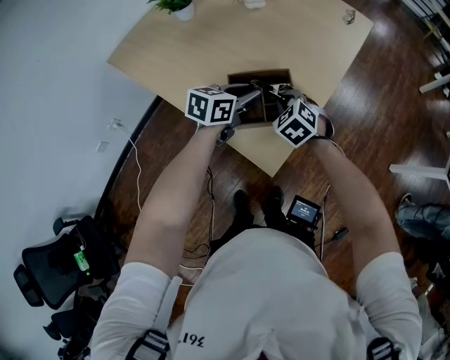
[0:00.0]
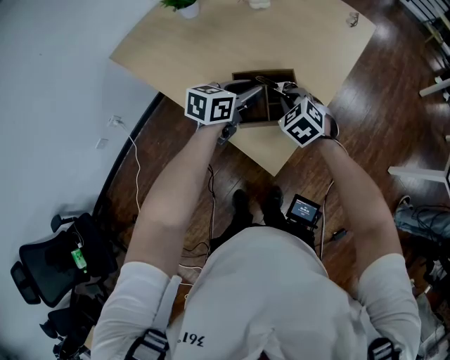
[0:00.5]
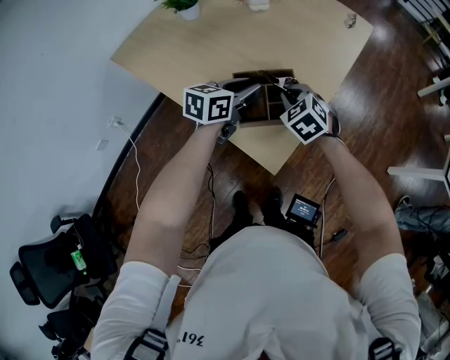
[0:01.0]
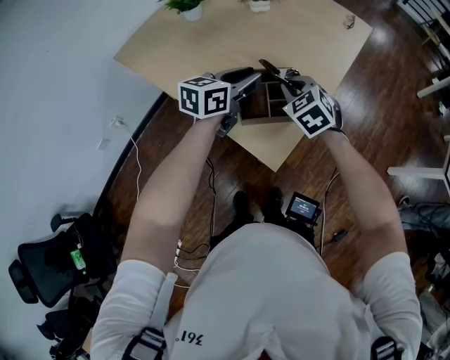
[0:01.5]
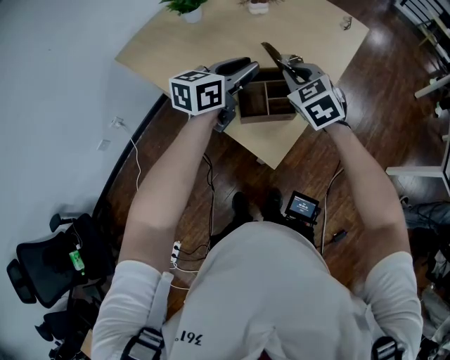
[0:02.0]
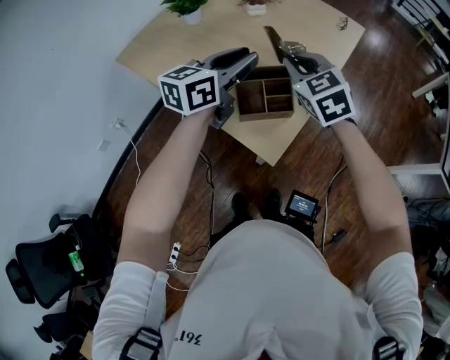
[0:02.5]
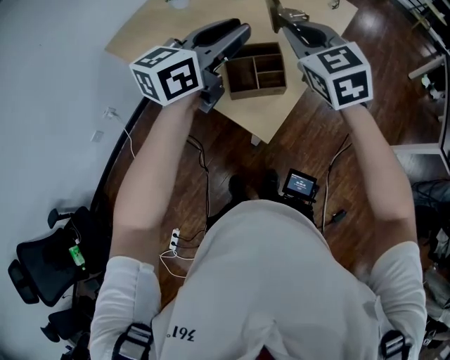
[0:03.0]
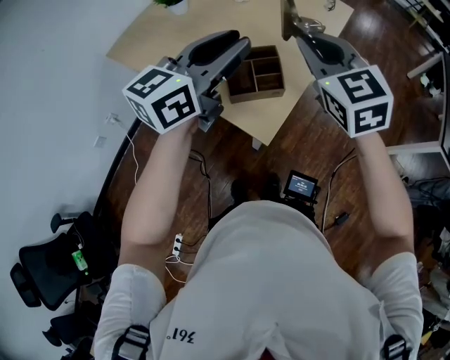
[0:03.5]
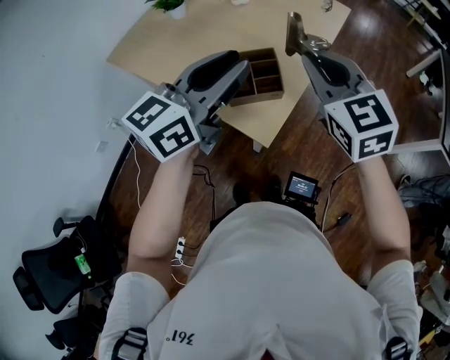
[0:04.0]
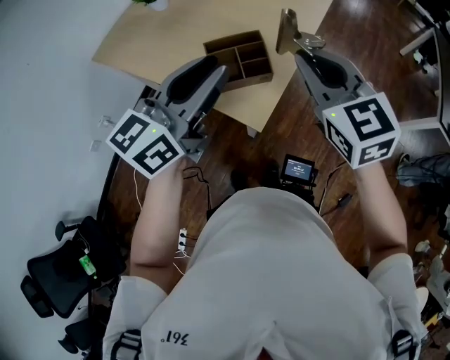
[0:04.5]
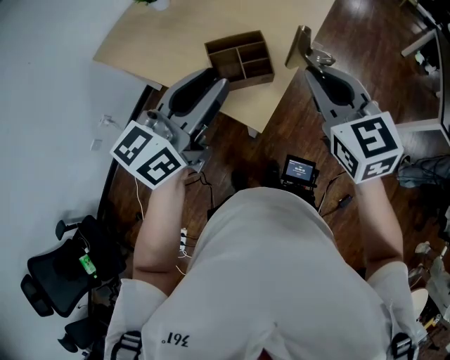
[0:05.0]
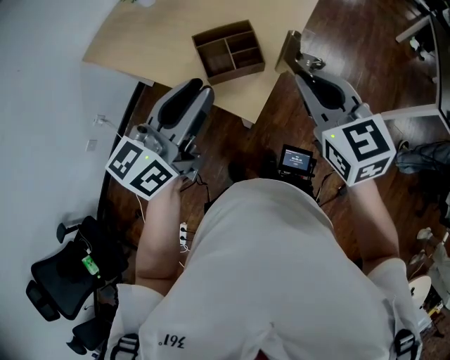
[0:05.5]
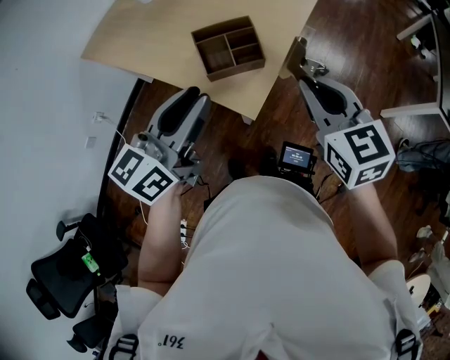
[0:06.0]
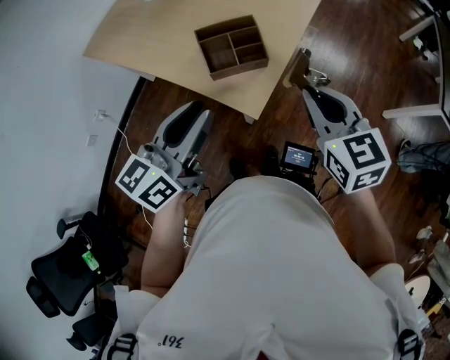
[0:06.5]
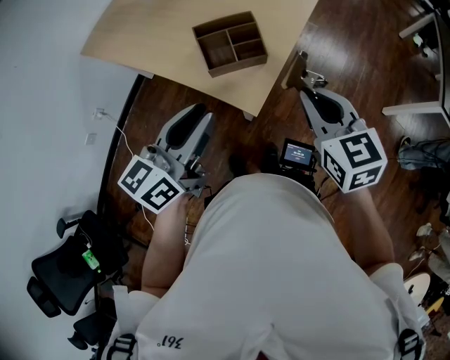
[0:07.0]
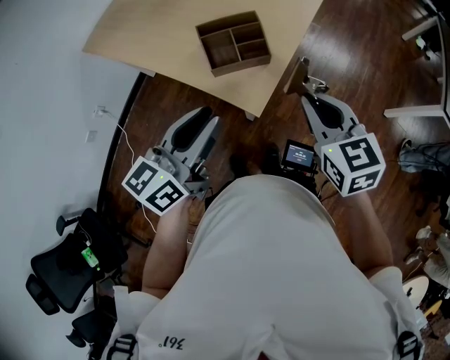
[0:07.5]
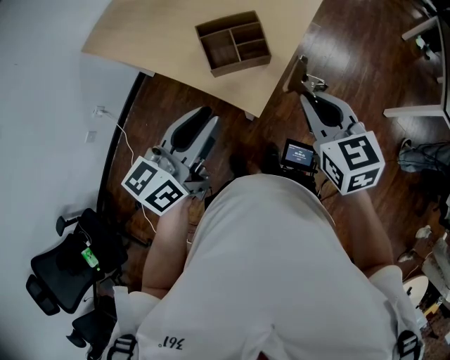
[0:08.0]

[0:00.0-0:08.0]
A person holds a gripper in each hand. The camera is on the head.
0:00.0 to 0:02.0: Both grippers move upward, roughly 15 cm.
0:02.0 to 0:04.0: The right gripper goes about 20 cm upward, backward and to the right, while the left gripper moves backward and upward, about 20 cm.
0:04.0 to 0:06.0: The right gripper goes about 10 cm backward, downward and to the right. Meanwhile the left gripper moves backward and downward, some 10 cm.
0:06.0 to 0:08.0: The right gripper ends up some 5 cm from where it was. Meanwhile the left gripper ends up roughly 5 cm from where it was.

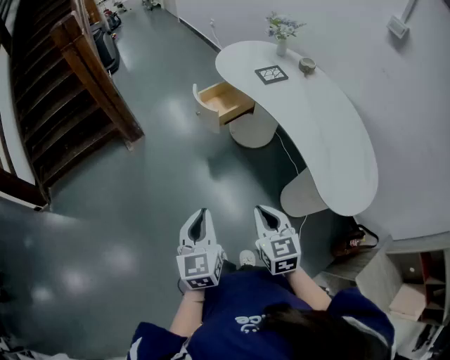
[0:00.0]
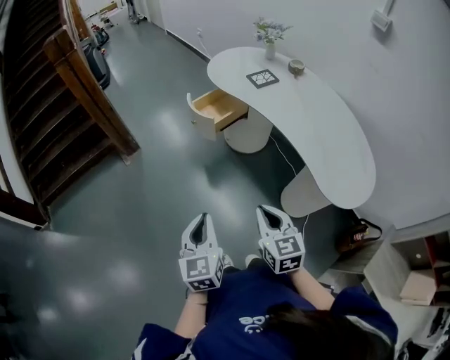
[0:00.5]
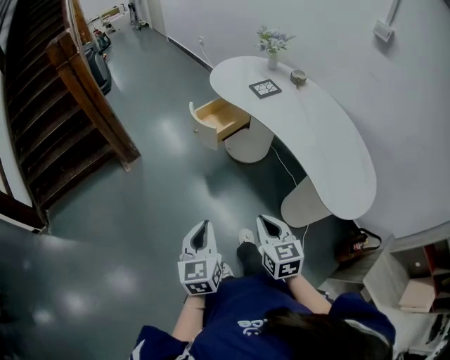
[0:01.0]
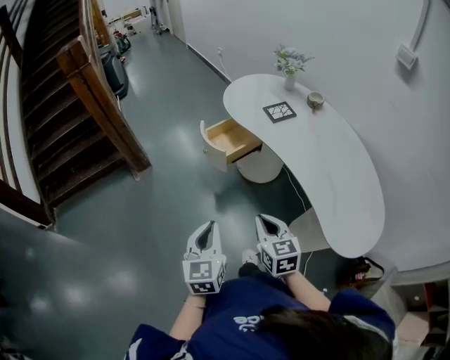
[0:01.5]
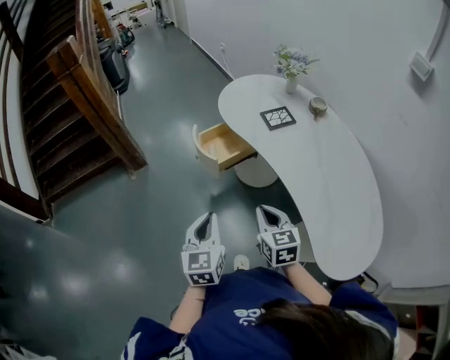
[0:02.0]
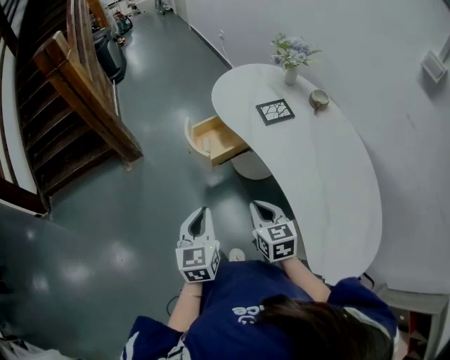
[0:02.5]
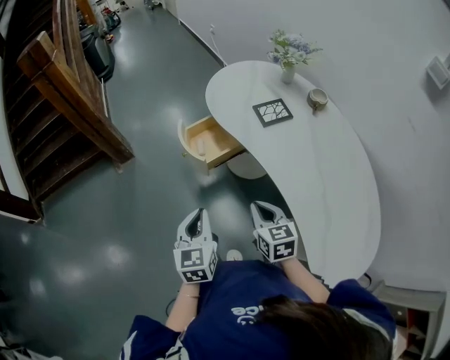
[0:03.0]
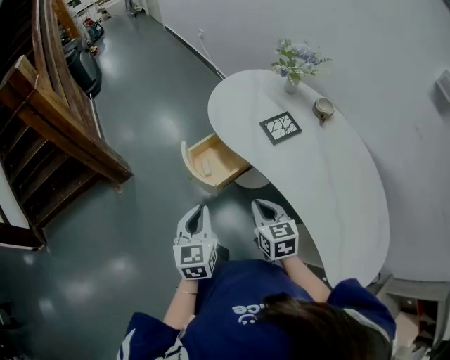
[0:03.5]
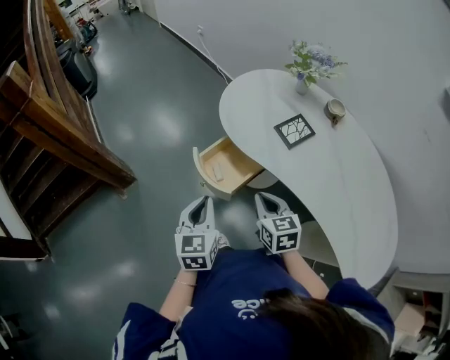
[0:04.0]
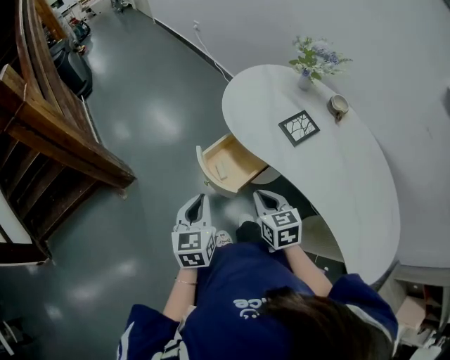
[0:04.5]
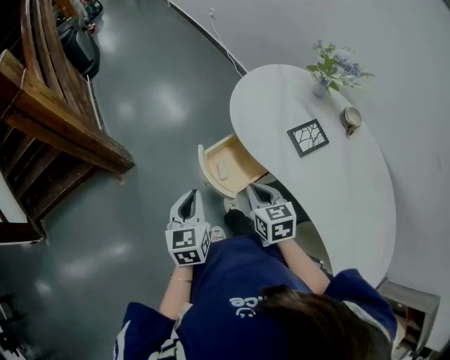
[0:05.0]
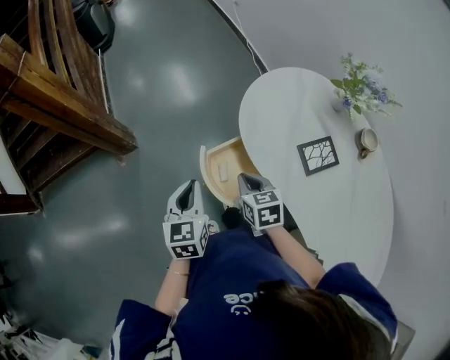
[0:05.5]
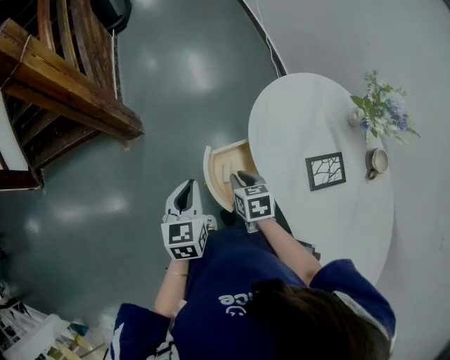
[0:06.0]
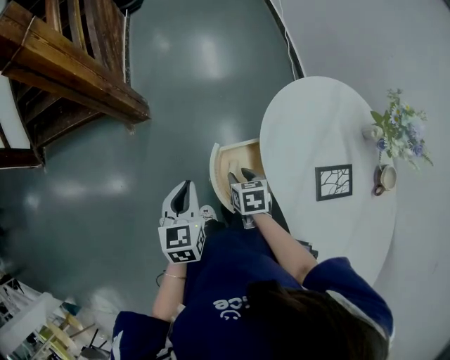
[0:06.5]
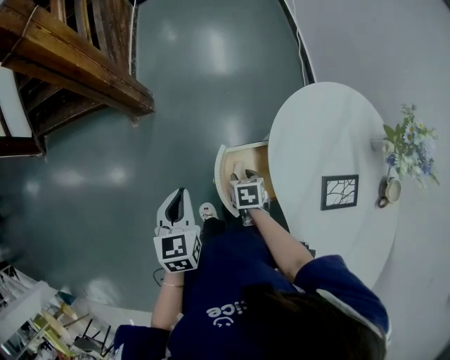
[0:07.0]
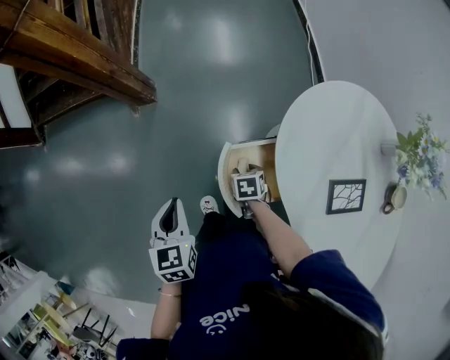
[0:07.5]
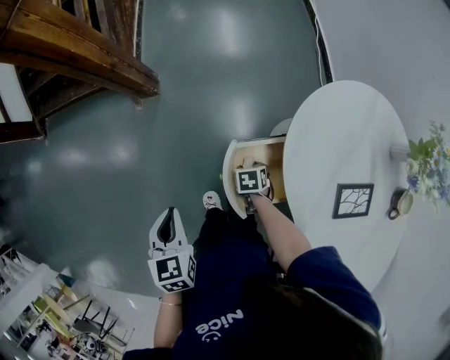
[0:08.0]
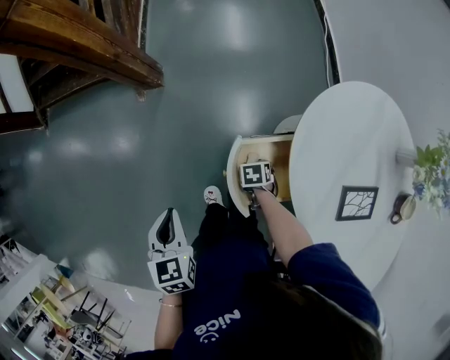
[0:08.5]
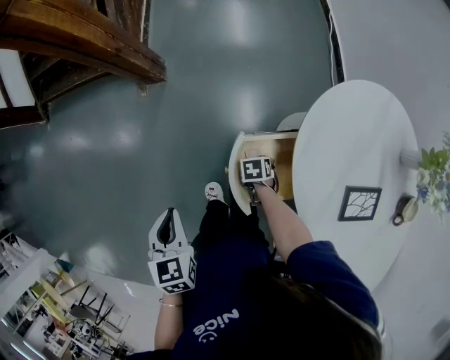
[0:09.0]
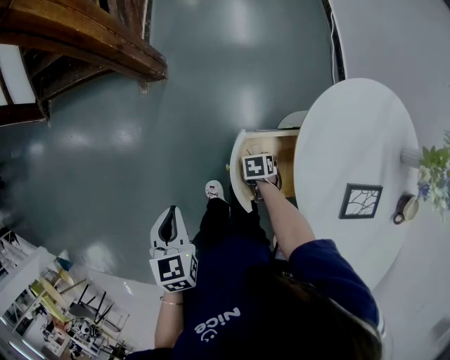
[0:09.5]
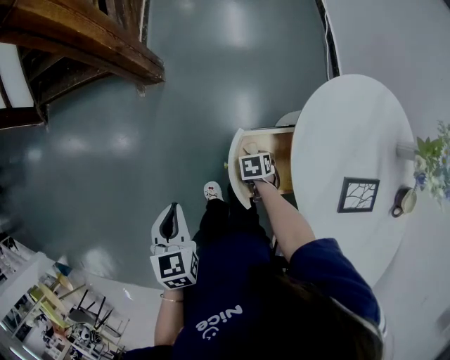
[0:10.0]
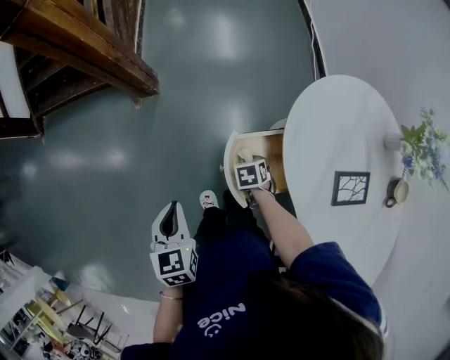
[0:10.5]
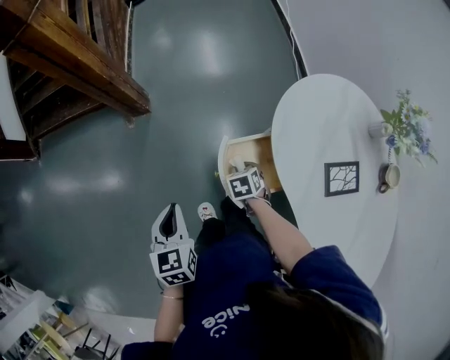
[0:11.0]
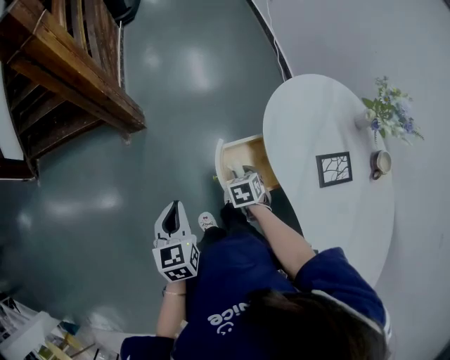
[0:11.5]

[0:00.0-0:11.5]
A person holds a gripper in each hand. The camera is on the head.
0:00.0 to 0:02.0: The two grippers go about 20 cm forward.
0:02.0 to 0:04.0: Both grippers move forward, roughly 25 cm.
0:04.0 to 0:06.0: The left gripper moves approximately 15 cm, and changes its angle by about 30 degrees; the right gripper ends up roughly 25 cm from where it was, and swivels some 30 degrees.
0:06.0 to 0:07.5: The right gripper travels downward by roughly 15 cm, and opens, while the left gripper shifts about 10 cm to the left.
0:07.5 to 0:09.5: The right gripper shifts roughly 5 cm downward. Meanwhile the left gripper ends up about 5 cm from where it was.
0:09.5 to 0:11.5: The right gripper heads upward, covering some 15 cm, and changes its angle by about 20 degrees.

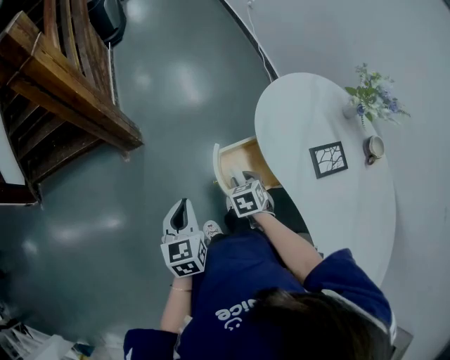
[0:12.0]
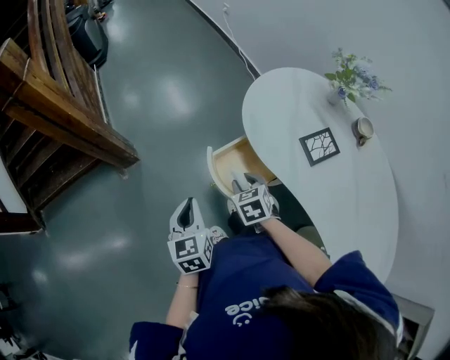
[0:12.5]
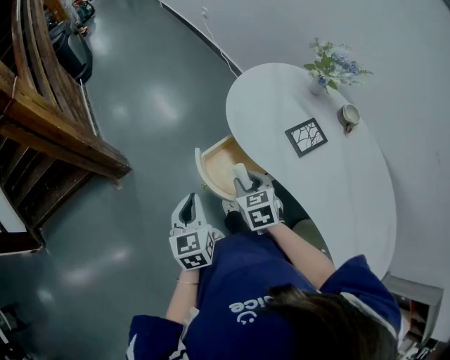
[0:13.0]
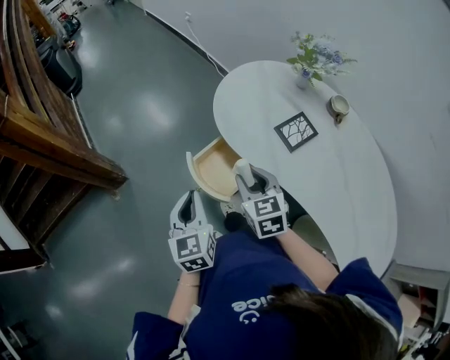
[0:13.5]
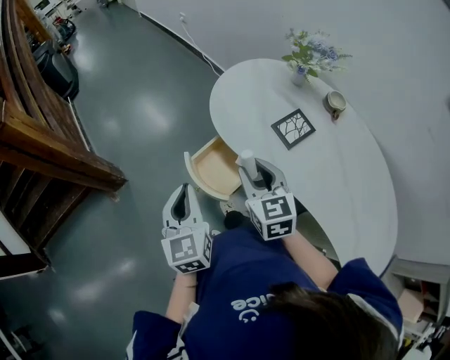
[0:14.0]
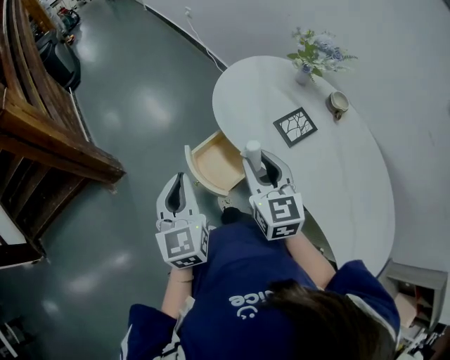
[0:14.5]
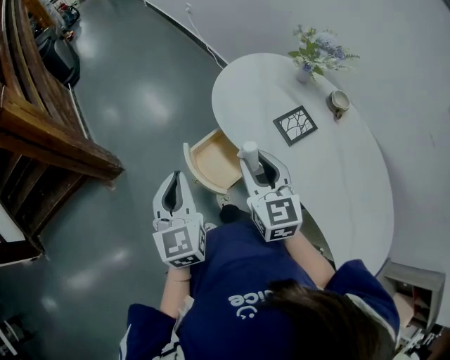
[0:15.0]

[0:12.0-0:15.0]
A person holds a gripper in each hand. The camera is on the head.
0:12.0 to 0:13.5: The left gripper is displaced to the right by roughly 10 cm; the right gripper travels upward and to the right by roughly 15 cm, and rotates roughly 30 degrees.
0:13.5 to 0:15.0: The two grippers go roughly 10 cm upward.

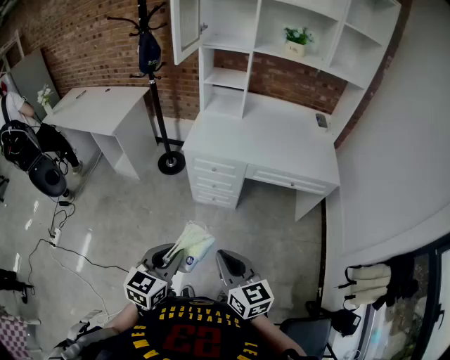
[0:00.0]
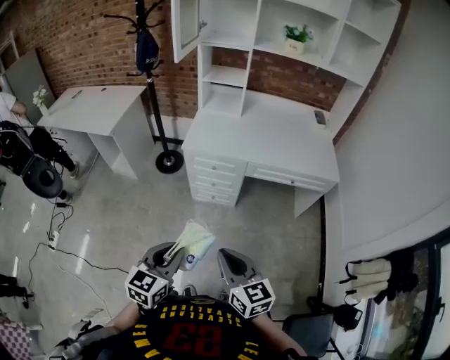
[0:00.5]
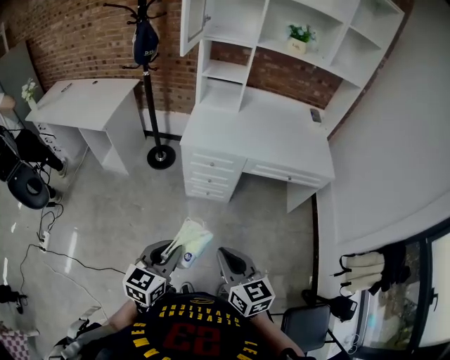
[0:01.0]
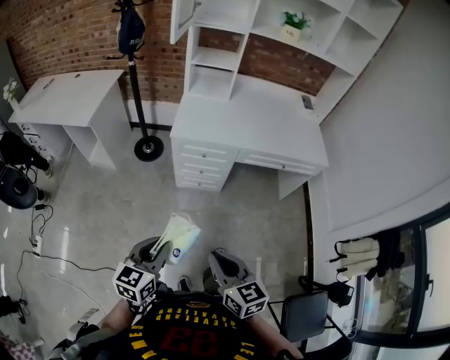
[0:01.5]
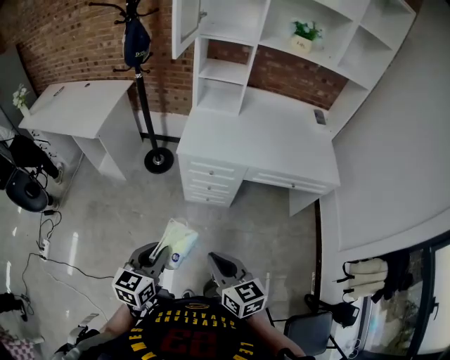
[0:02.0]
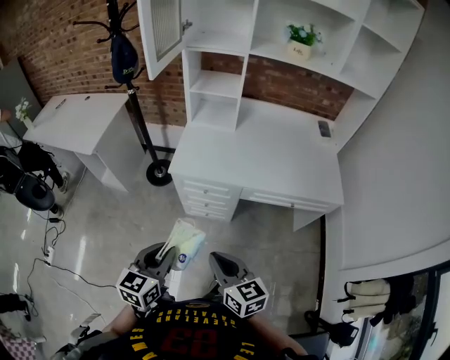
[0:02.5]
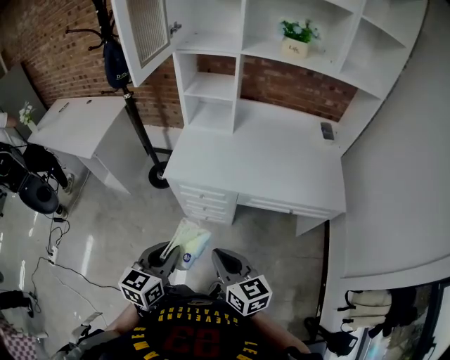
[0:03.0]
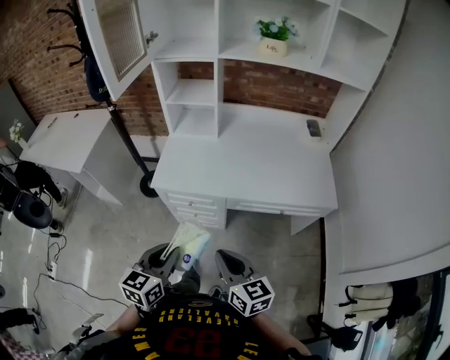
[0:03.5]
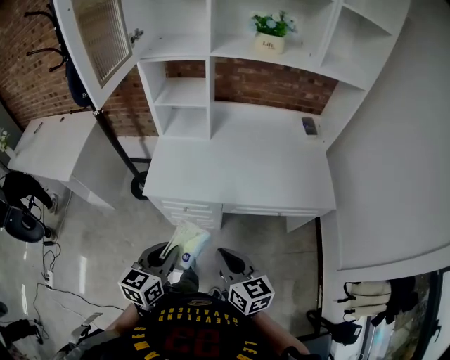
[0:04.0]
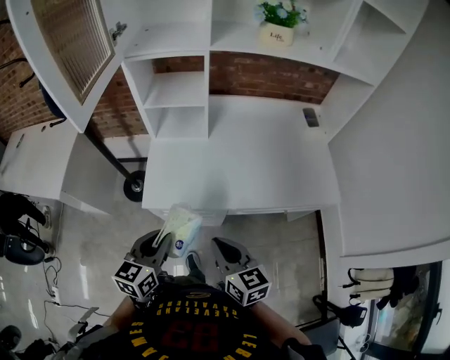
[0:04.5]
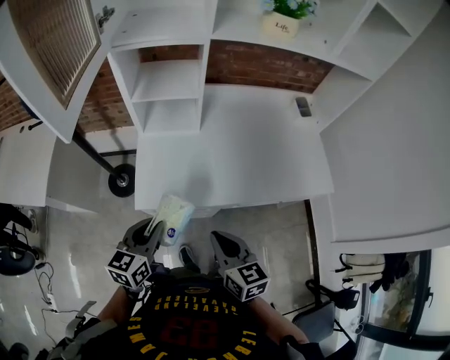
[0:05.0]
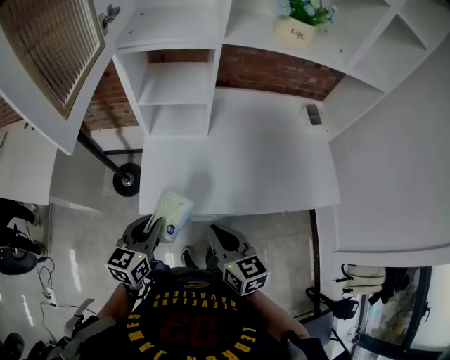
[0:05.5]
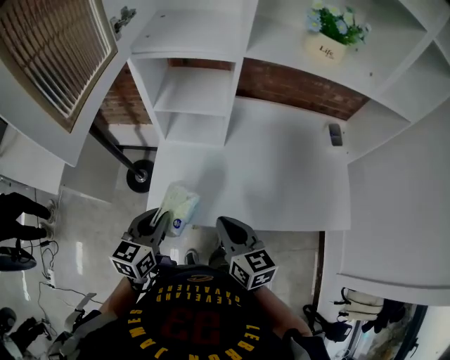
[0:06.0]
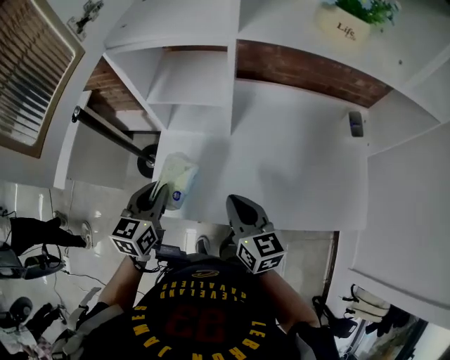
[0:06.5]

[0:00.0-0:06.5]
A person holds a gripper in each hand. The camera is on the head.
0:00.0 to 0:02.0: The two grippers go roughly 15 cm to the left and forward.
0:02.0 to 0:04.5: Both grippers travel together forward, approximately 35 cm.
0:04.5 to 0:06.5: The grippers both shift forward by roughly 25 cm.
